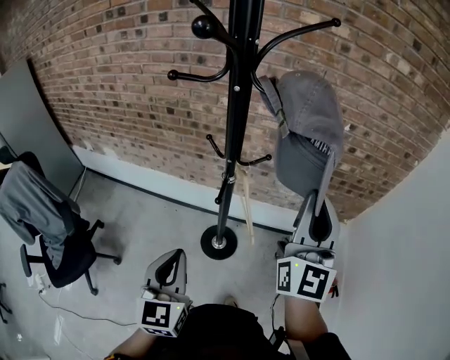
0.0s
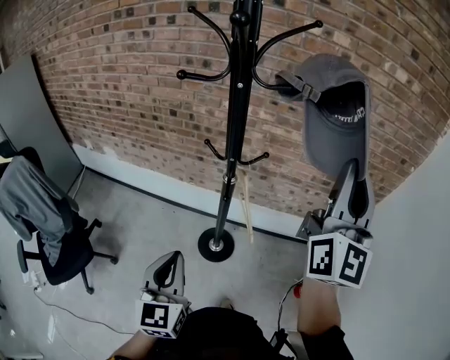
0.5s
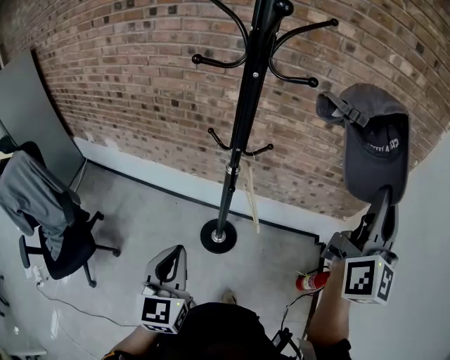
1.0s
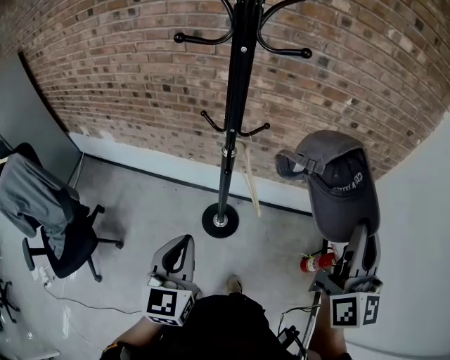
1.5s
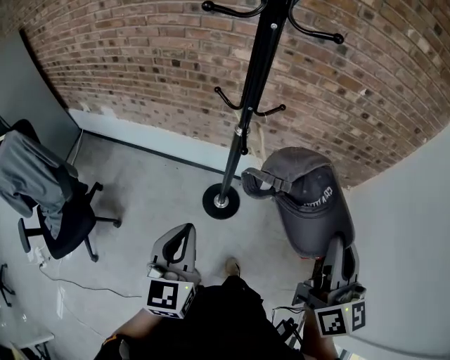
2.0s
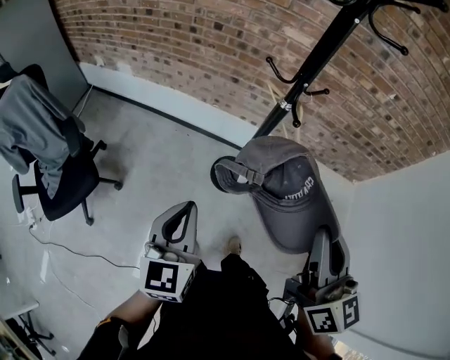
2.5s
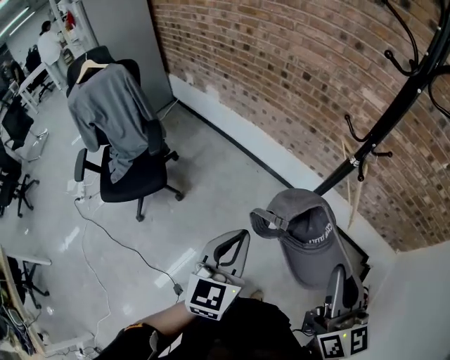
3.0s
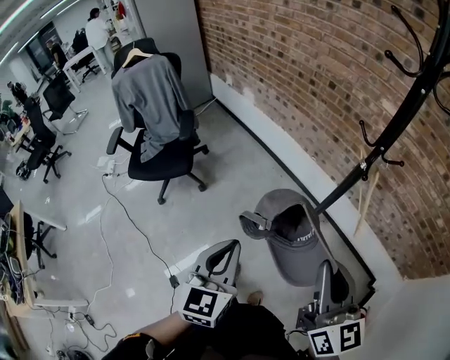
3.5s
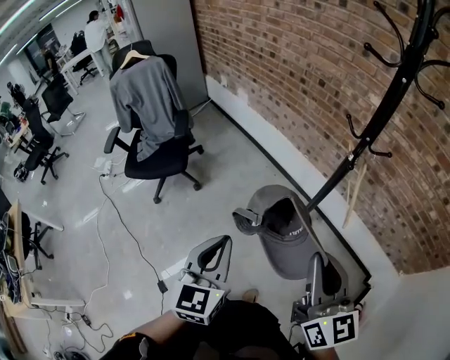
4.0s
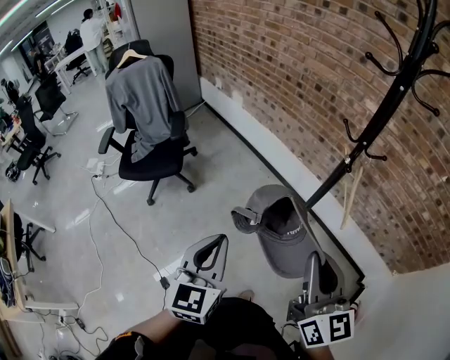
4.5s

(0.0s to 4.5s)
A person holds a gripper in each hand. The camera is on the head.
0.0s - 2.0s: The right gripper moves backward and downward, about 15 cm, and rotates some 30 degrees.
2.0s - 4.5s: The left gripper changes place by some 20 cm, and changes its angle by some 30 degrees. The right gripper ends up about 20 cm from where it was, and rotates about 40 degrees.

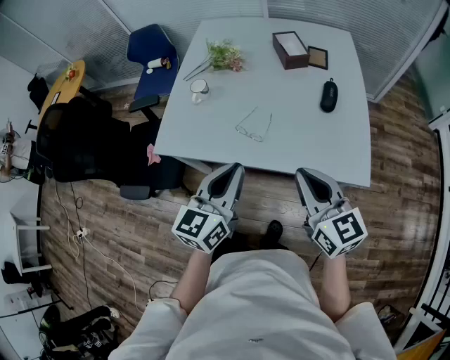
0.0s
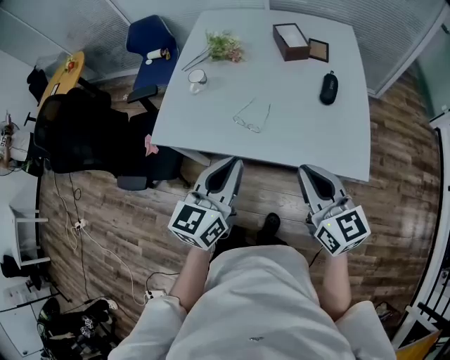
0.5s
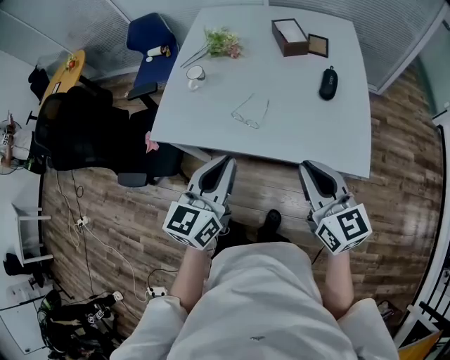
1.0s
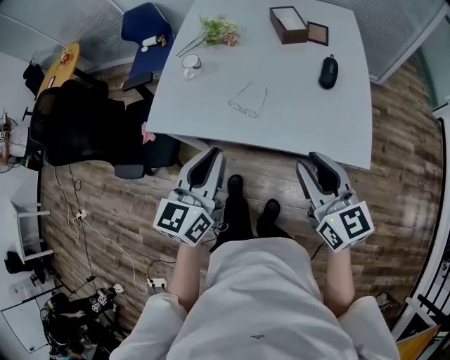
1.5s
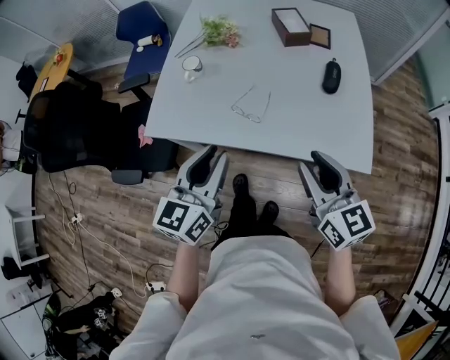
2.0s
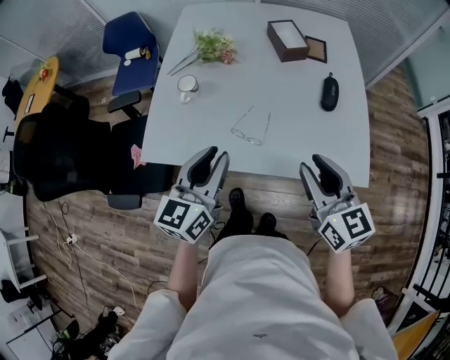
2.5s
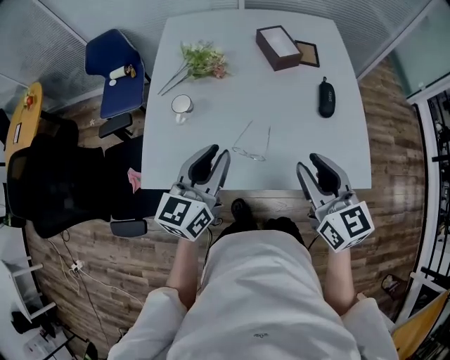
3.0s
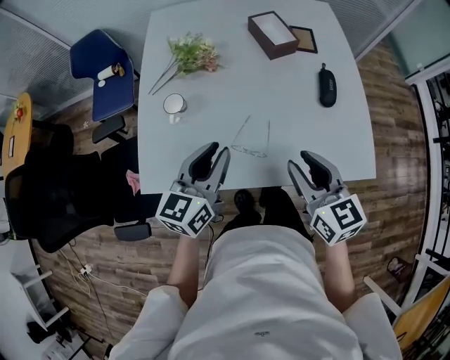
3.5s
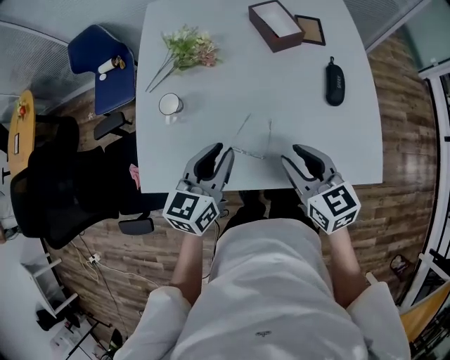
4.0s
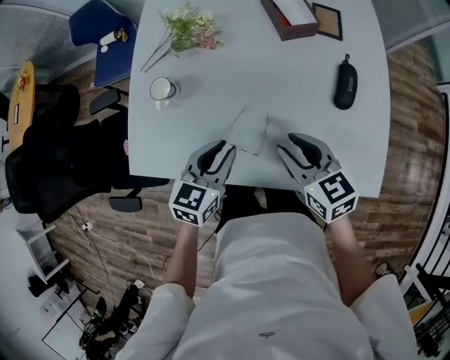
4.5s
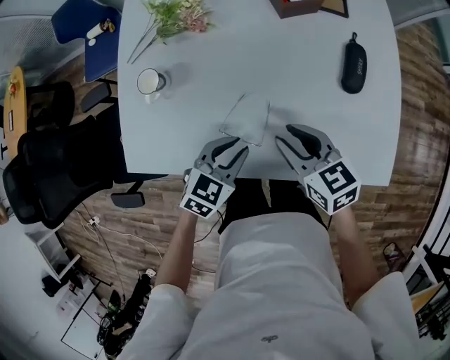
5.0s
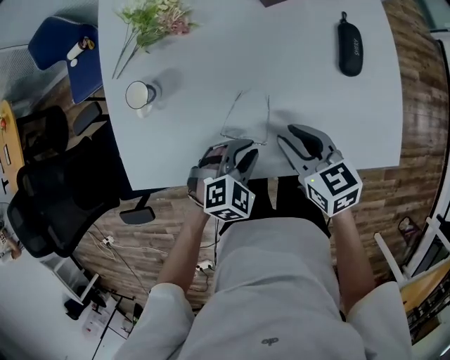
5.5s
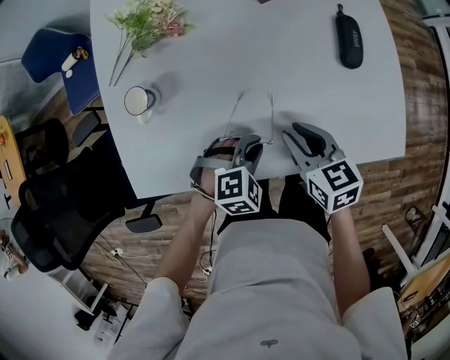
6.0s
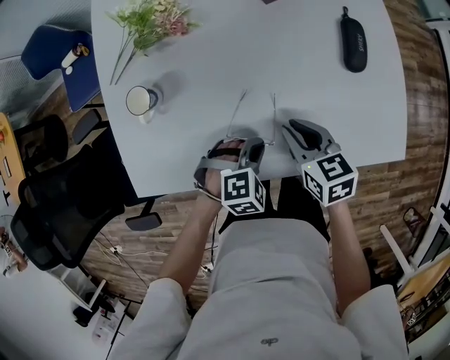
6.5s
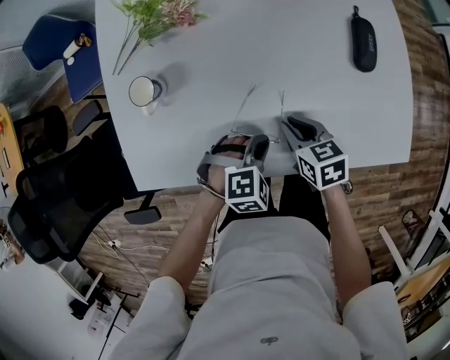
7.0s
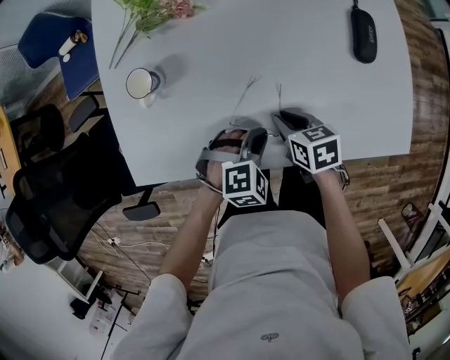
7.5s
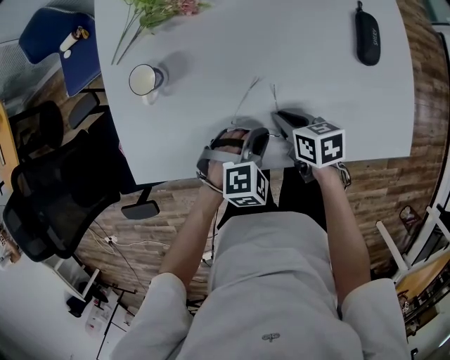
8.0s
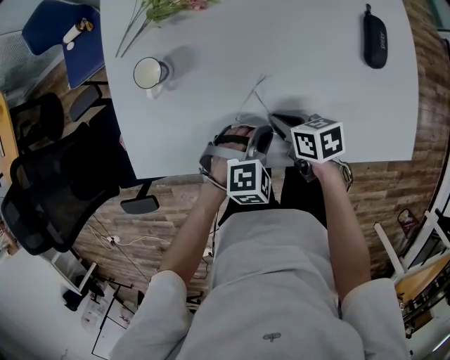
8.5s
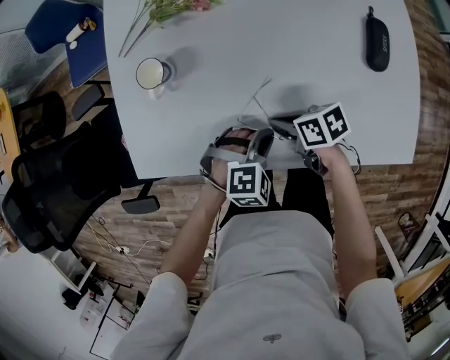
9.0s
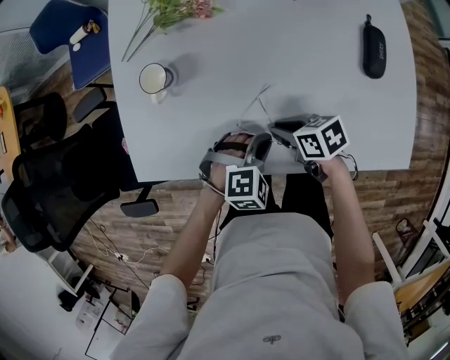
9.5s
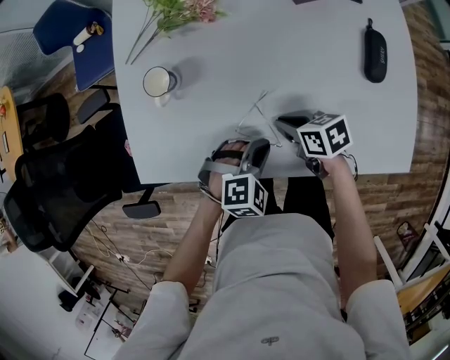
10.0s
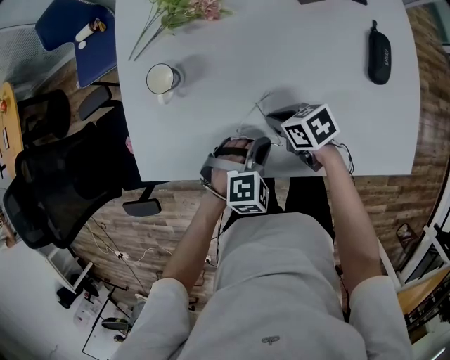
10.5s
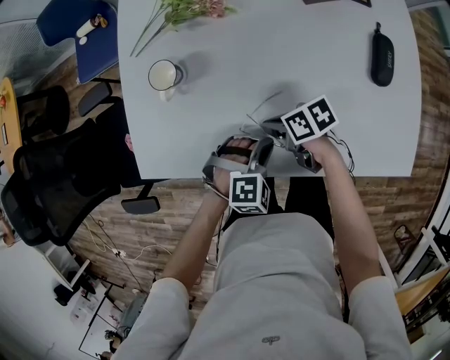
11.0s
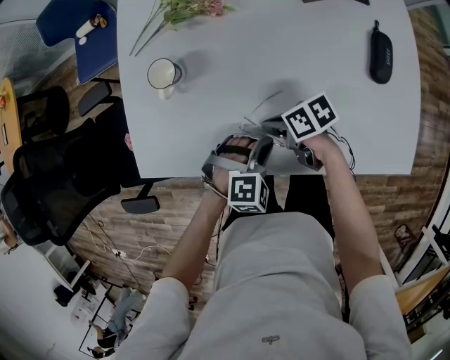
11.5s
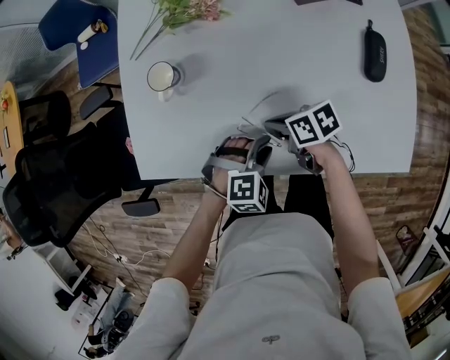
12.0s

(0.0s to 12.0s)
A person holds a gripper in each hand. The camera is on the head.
0.0s - 2.0s: The right gripper opens up.
2.0s - 4.0s: The grippers both shift forward and downward by approximately 20 cm.
4.0s - 6.0s: The left gripper heads downward and to the right, covering about 20 cm, and points its fingers about 40 degrees further downward; the right gripper shifts some 15 cm downward.
6.0s - 8.0s: The right gripper goes some 10 cm downward, and turns by some 20 degrees.
10.0s - 12.0s: The left gripper opens its fingers.

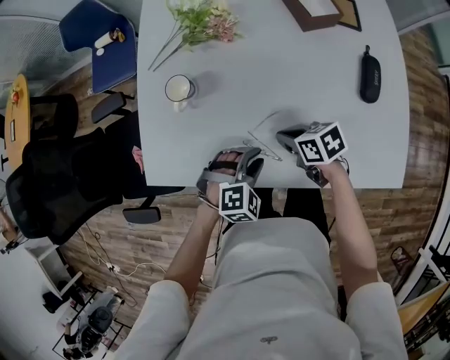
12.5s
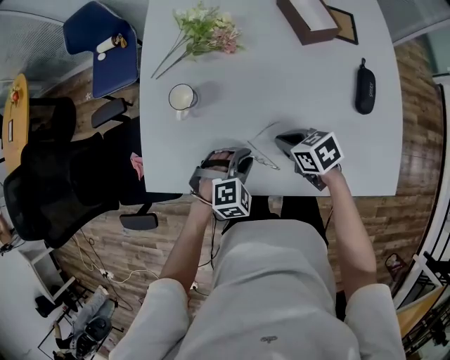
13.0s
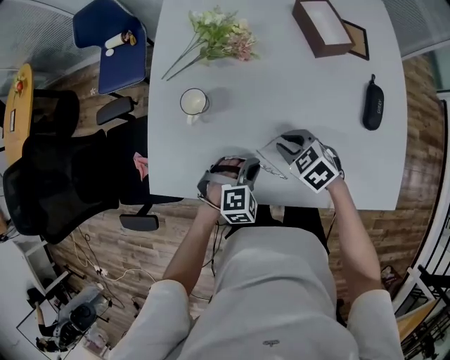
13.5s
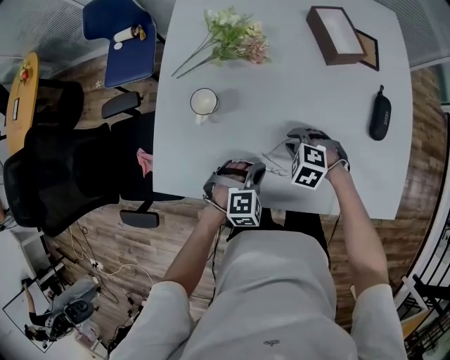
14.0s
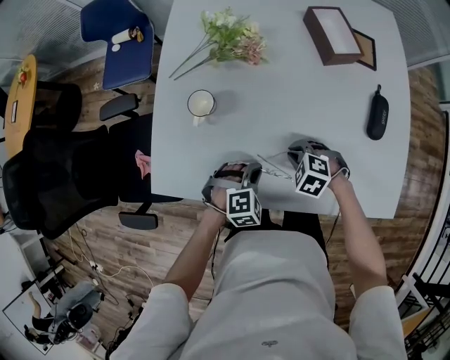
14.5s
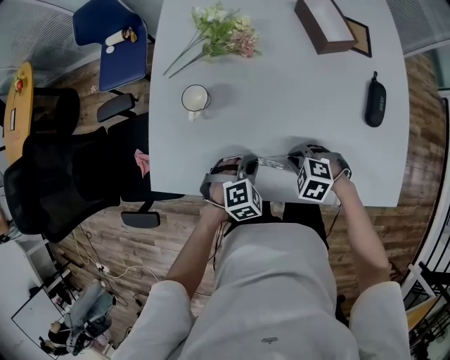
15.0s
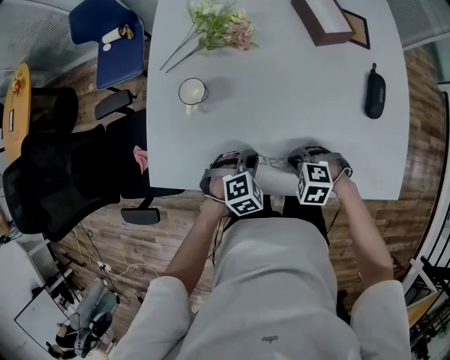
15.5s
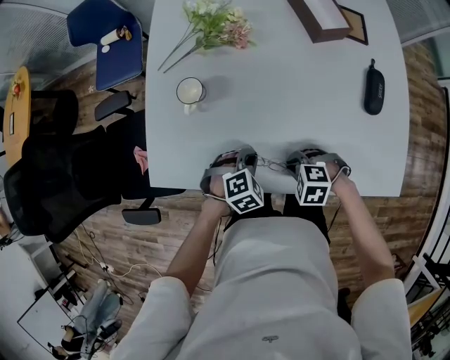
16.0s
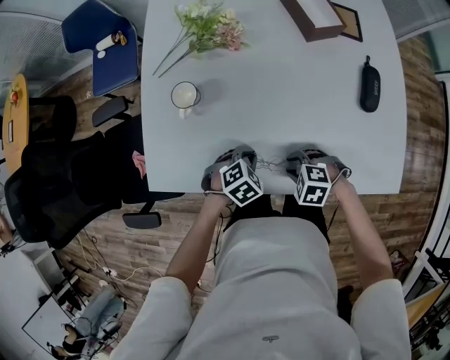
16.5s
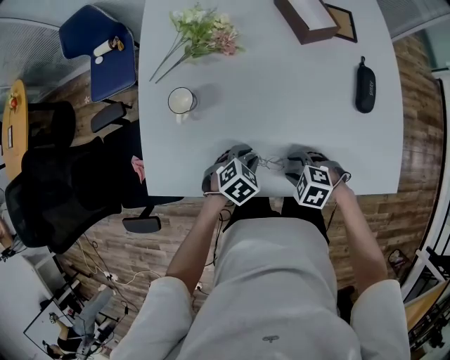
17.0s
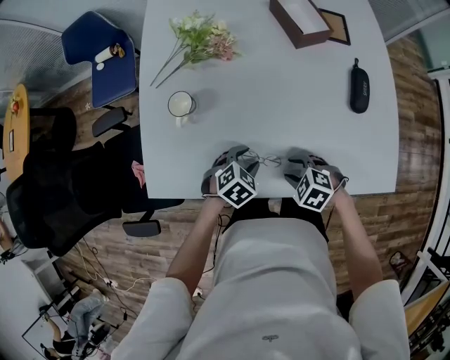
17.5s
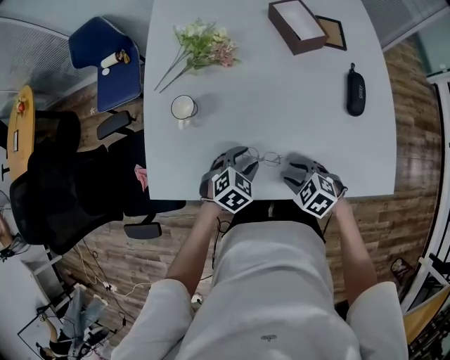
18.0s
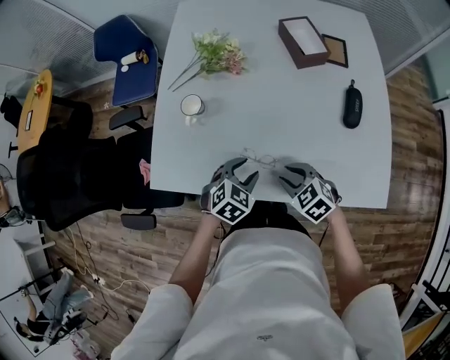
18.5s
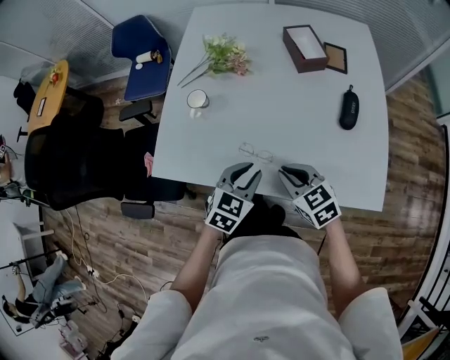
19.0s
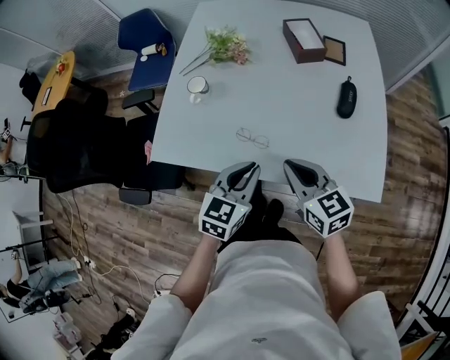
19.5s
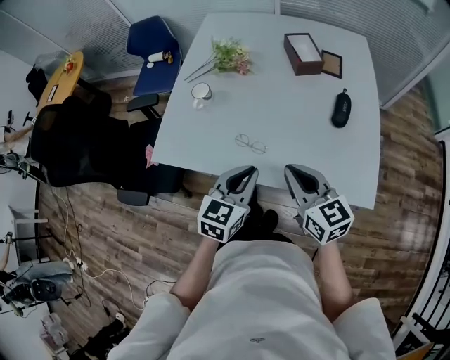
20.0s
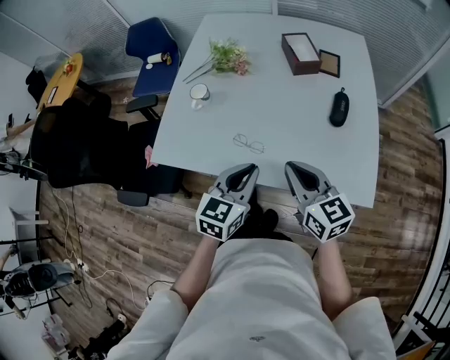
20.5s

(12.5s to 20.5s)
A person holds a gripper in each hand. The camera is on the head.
12.5s - 14.5s: The right gripper rotates around the line of its fingers by about 60 degrees, counterclockwise from behind. The left gripper shifts by about 5 cm, and closes.
14.5s - 16.5s: The left gripper changes its angle by roughly 20 degrees; the right gripper shifts by some 10 cm, and opens its fingers.
16.5s - 18.5s: The grippers both shift upward by about 10 cm. The left gripper changes its angle by approximately 20 degrees, and opens its fingers, while the right gripper changes its angle by about 30 degrees.
18.5s - 20.5s: The left gripper goes about 20 cm upward and backward, tips its fingers upward by some 30 degrees, and closes. Meanwhile the right gripper travels upward by approximately 20 cm, tilts its fingers some 40 degrees upward, and closes.

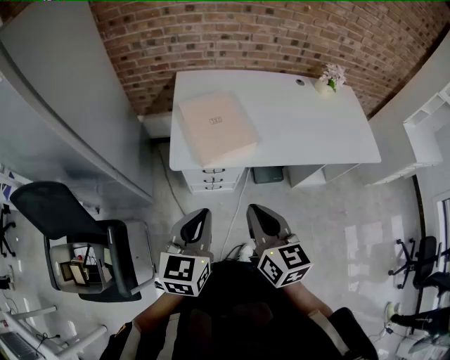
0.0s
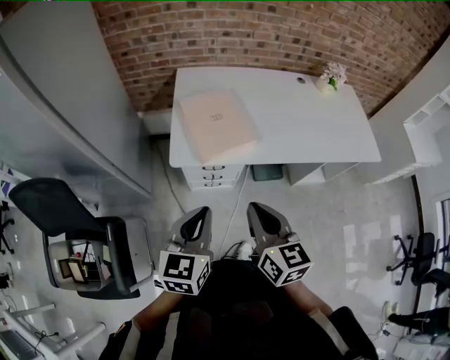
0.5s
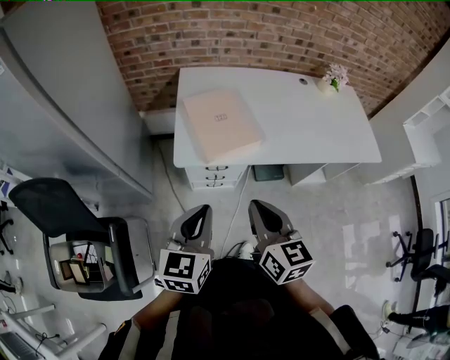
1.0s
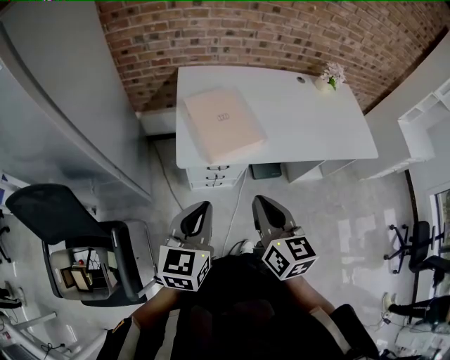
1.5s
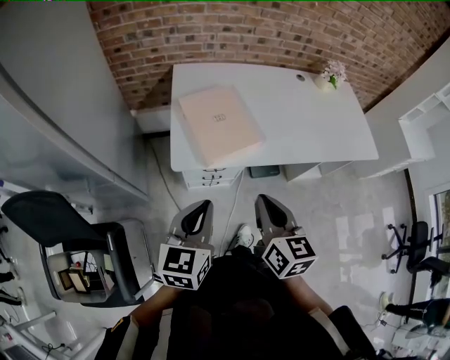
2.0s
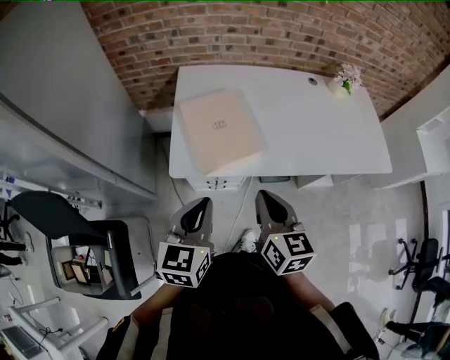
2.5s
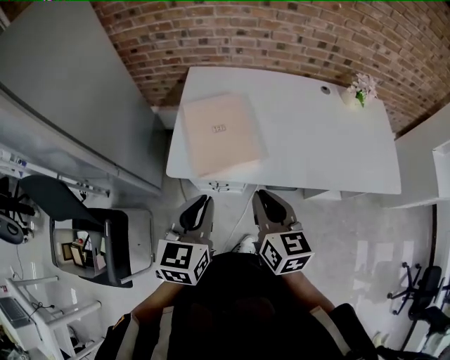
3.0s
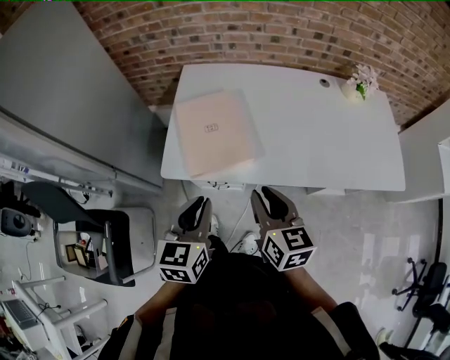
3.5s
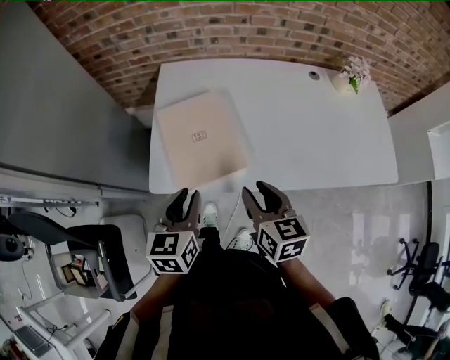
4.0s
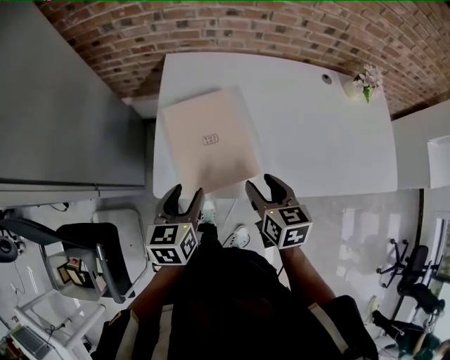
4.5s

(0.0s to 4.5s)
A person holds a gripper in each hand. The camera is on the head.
0.0s - 2.0s: The left gripper changes place by some 5 cm.
2.0s - 4.5s: The two grippers go about 25 cm forward and downward. The left gripper changes its angle by about 20 degrees, and opens, while the right gripper turns by about 20 degrees, and opens.
